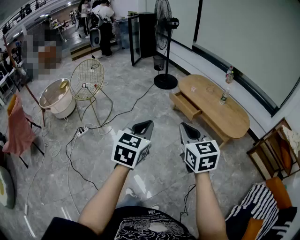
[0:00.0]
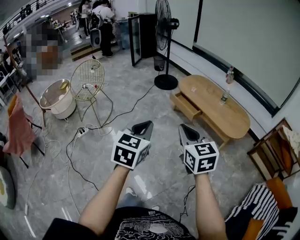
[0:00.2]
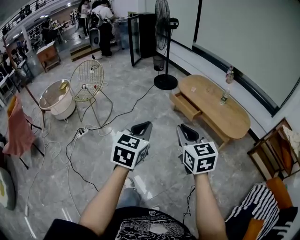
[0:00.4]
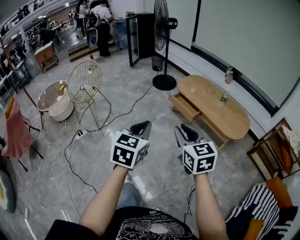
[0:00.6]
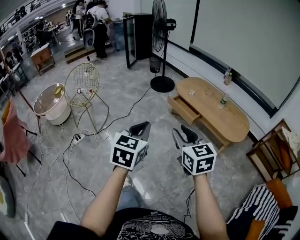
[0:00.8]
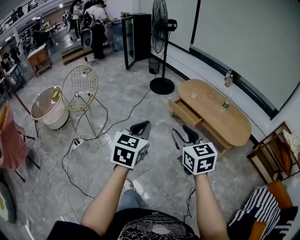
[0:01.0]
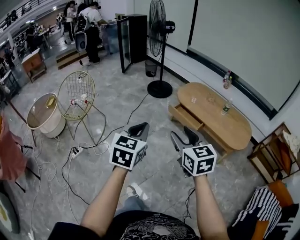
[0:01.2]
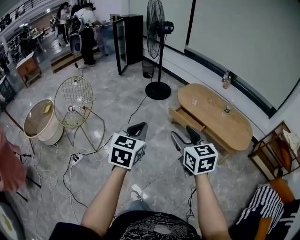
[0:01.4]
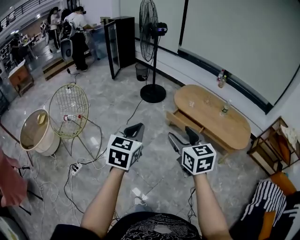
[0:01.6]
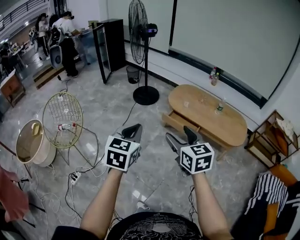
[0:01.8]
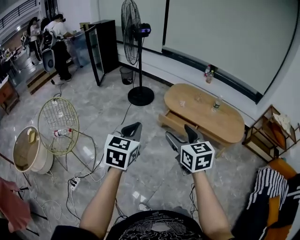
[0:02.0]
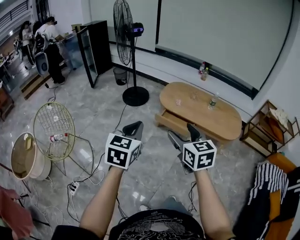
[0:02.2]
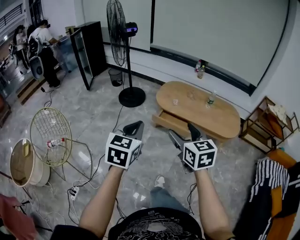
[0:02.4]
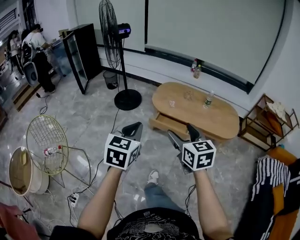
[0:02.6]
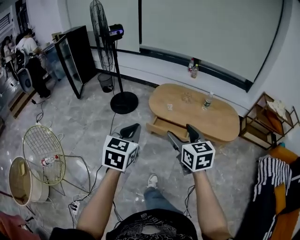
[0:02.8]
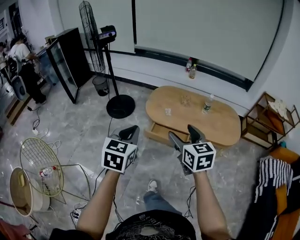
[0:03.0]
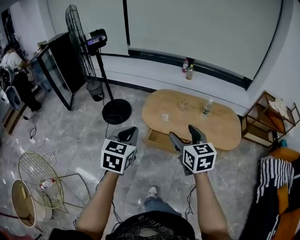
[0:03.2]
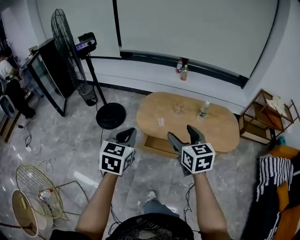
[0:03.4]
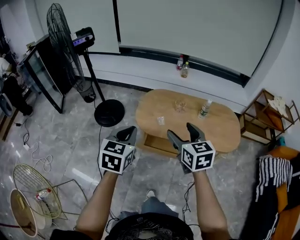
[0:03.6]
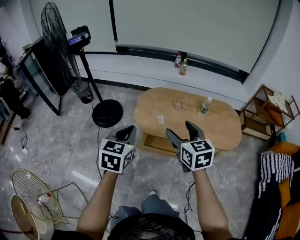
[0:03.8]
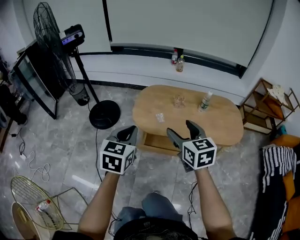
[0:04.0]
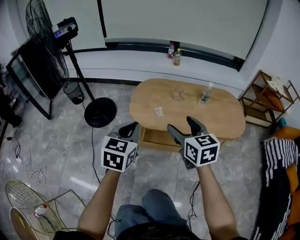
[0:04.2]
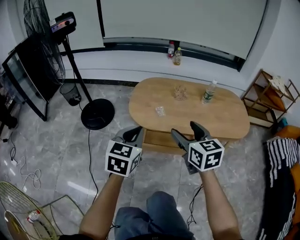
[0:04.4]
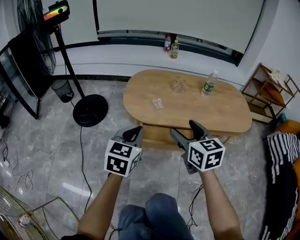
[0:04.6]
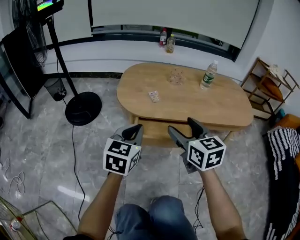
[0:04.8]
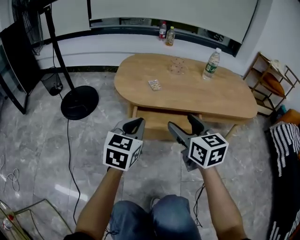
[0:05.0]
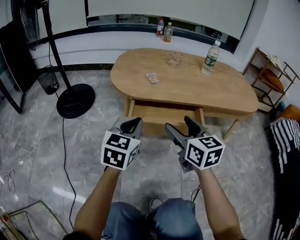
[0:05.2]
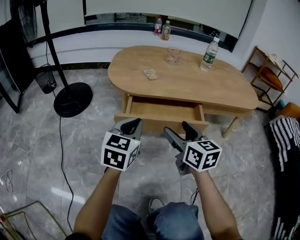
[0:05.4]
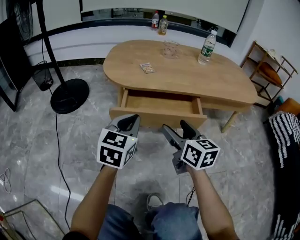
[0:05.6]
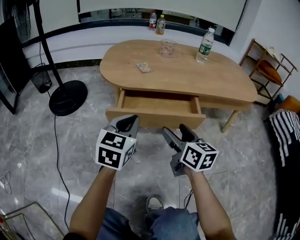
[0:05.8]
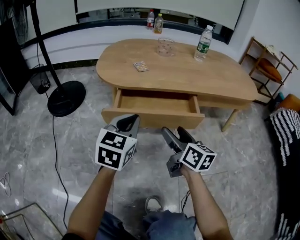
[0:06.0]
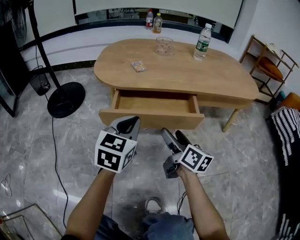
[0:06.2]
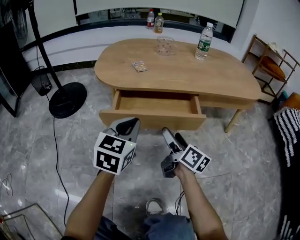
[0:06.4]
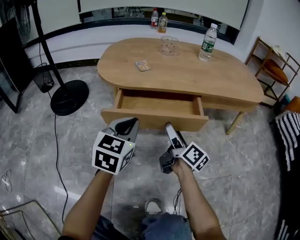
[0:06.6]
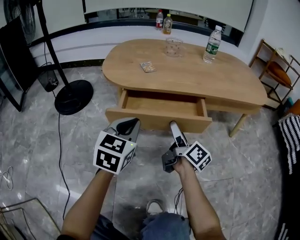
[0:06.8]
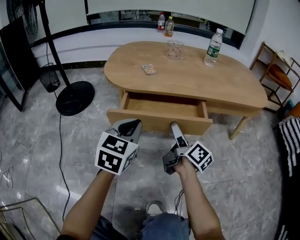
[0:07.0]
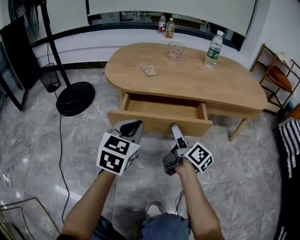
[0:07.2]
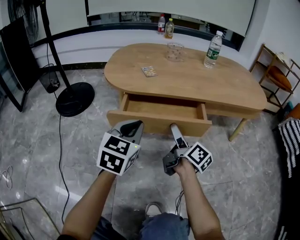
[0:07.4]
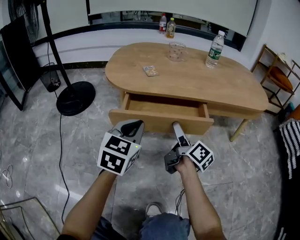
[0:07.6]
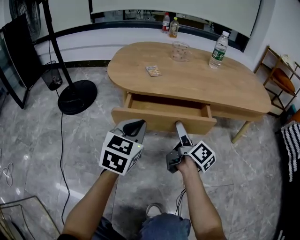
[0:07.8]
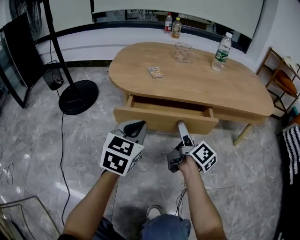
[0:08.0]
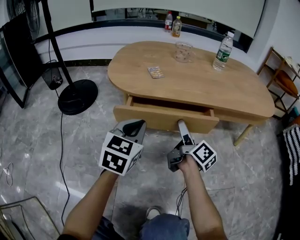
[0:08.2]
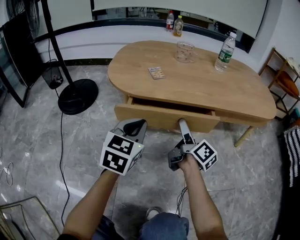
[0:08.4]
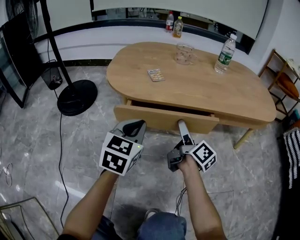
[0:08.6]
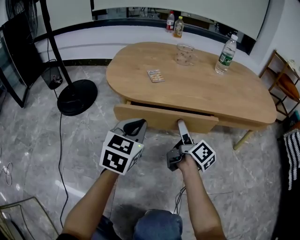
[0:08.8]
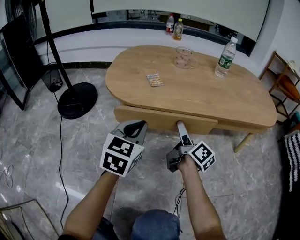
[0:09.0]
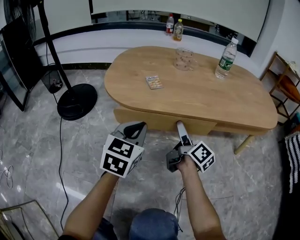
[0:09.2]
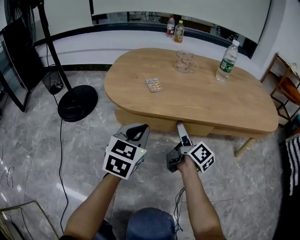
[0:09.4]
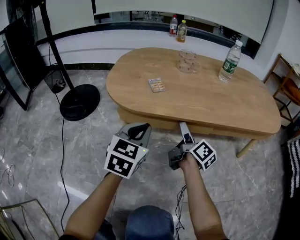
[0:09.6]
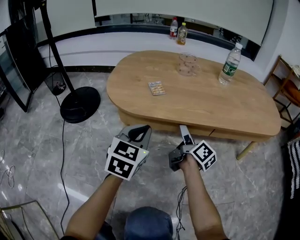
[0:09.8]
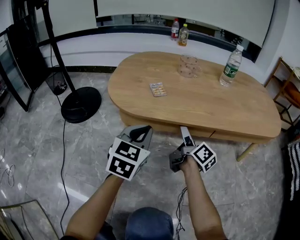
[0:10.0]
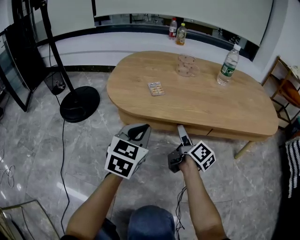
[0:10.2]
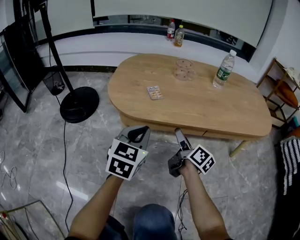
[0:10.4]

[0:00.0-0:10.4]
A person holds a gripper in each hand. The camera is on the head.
0:00.0 to 0:01.4: The grippers both shift forward and to the left by approximately 25 cm. The right gripper opens its fingers.
0:01.4 to 0:03.0: Both grippers travel together forward, some 30 cm. The right gripper swivels approximately 30 degrees, while the left gripper turns by approximately 20 degrees.
0:03.0 to 0:04.4: Both grippers travel together downward and forward, about 30 cm.
0:04.4 to 0:06.0: The two grippers go some 35 cm downward. The right gripper swivels roughly 30 degrees.
0:06.0 to 0:07.4: The right gripper ends up some 5 cm from where it was, and rotates roughly 30 degrees.
0:07.4 to 0:09.0: The two grippers go roughly 10 cm forward.
0:09.0 to 0:10.4: There are only small adjustments of the grippers.

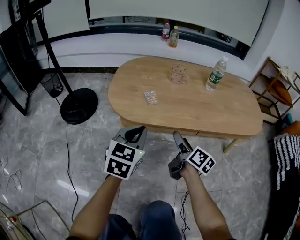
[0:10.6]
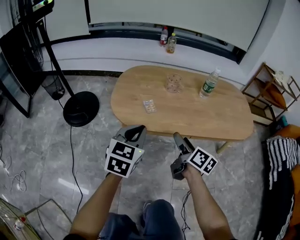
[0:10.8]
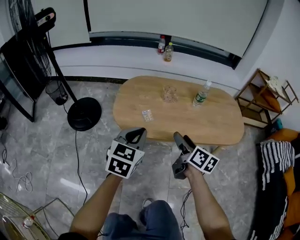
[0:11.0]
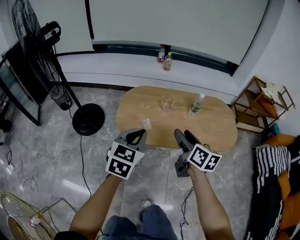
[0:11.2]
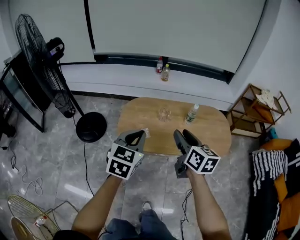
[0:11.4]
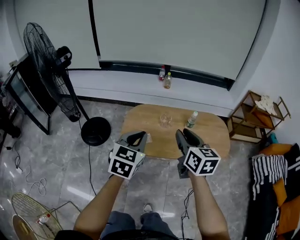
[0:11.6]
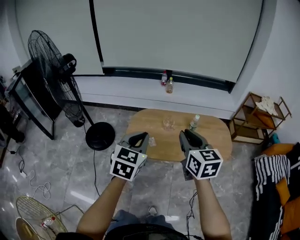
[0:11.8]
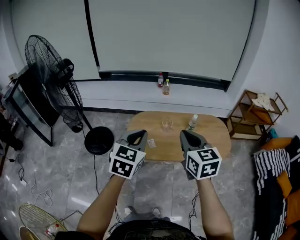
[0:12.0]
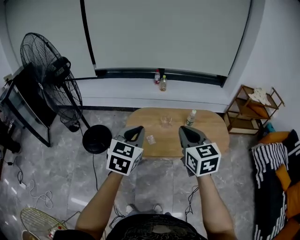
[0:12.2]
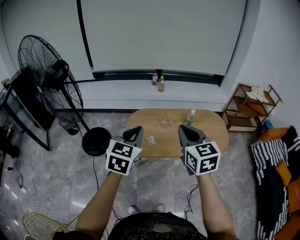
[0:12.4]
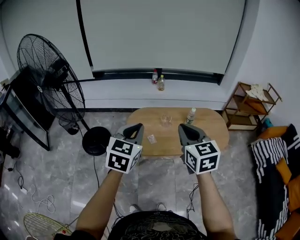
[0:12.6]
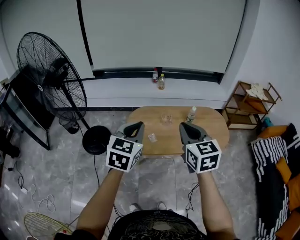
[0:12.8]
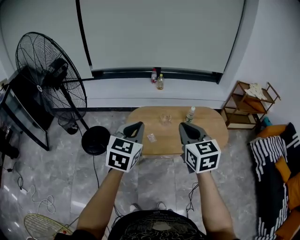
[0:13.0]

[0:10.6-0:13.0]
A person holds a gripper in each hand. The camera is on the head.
0:10.6 to 0:11.8: The grippers both shift upward by approximately 50 cm. The right gripper rotates around the line of its fingers by about 50 degrees, counterclockwise from behind, and closes.
0:11.8 to 0:13.0: Both grippers move to the left, approximately 5 cm.

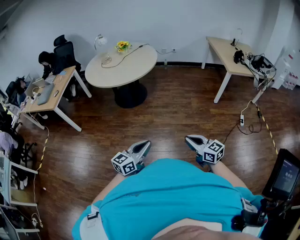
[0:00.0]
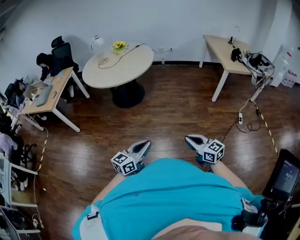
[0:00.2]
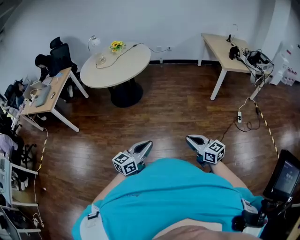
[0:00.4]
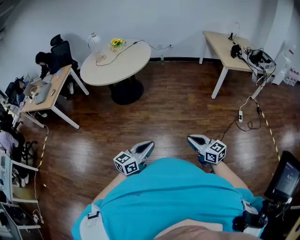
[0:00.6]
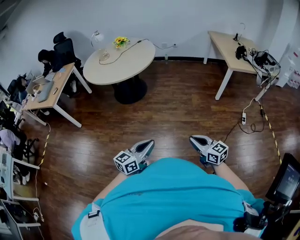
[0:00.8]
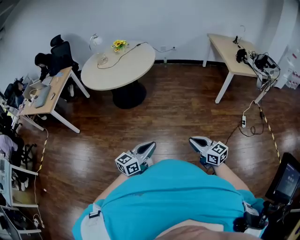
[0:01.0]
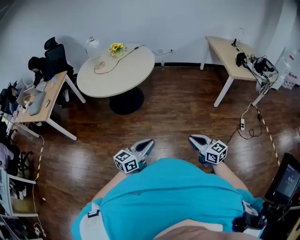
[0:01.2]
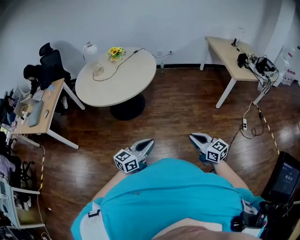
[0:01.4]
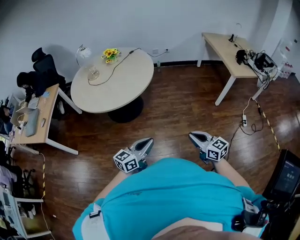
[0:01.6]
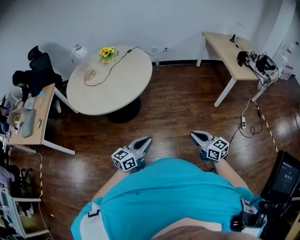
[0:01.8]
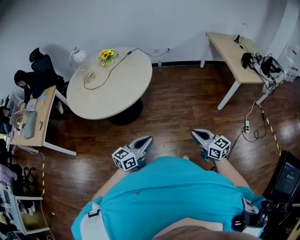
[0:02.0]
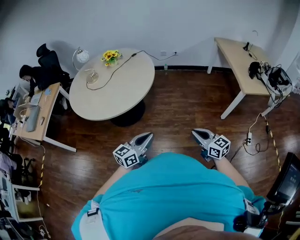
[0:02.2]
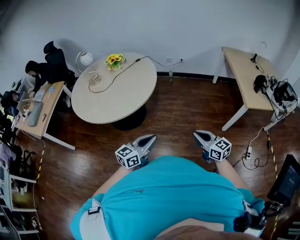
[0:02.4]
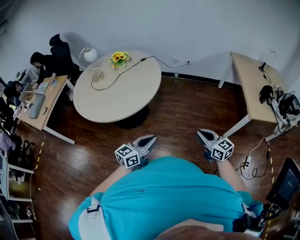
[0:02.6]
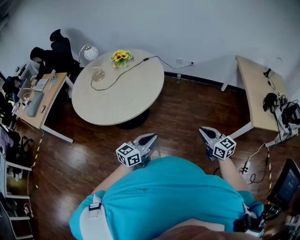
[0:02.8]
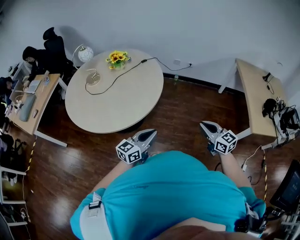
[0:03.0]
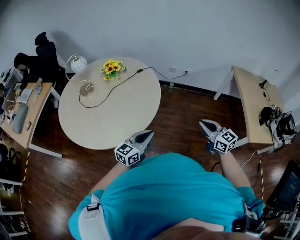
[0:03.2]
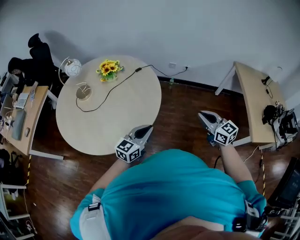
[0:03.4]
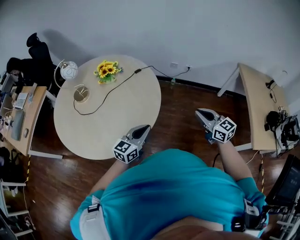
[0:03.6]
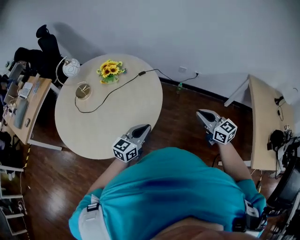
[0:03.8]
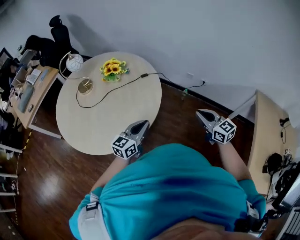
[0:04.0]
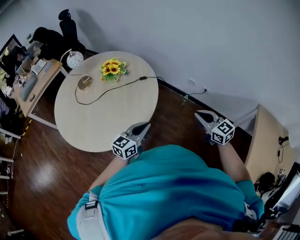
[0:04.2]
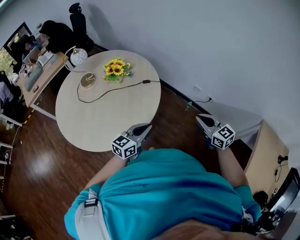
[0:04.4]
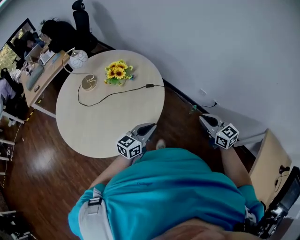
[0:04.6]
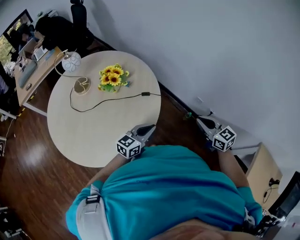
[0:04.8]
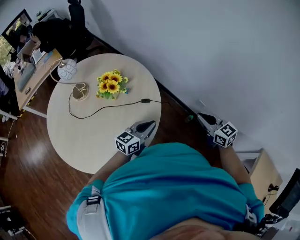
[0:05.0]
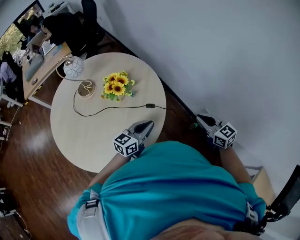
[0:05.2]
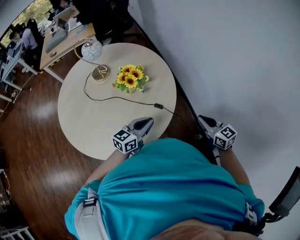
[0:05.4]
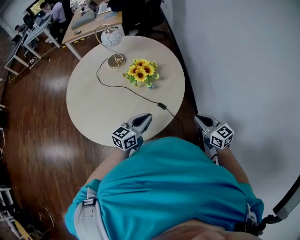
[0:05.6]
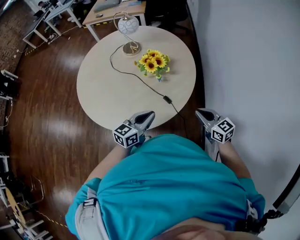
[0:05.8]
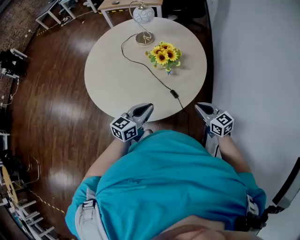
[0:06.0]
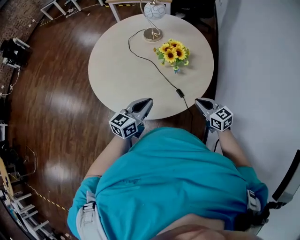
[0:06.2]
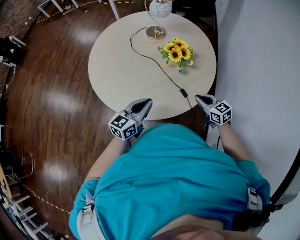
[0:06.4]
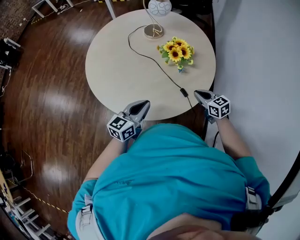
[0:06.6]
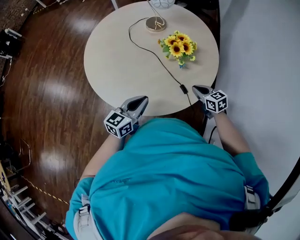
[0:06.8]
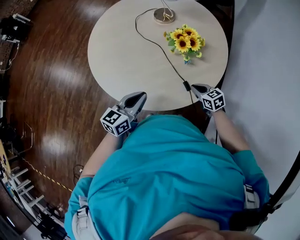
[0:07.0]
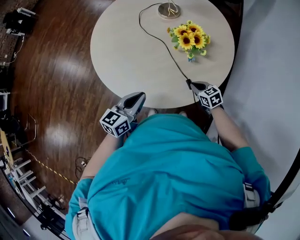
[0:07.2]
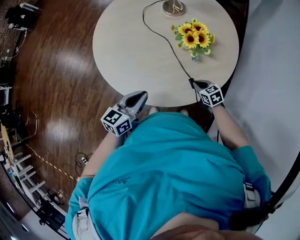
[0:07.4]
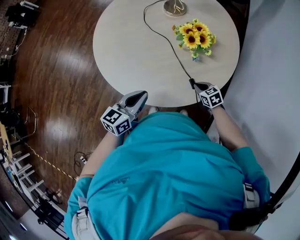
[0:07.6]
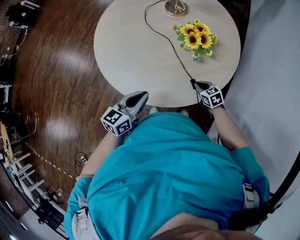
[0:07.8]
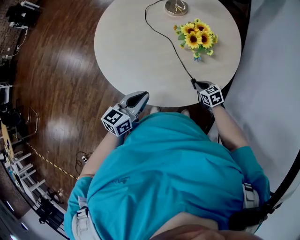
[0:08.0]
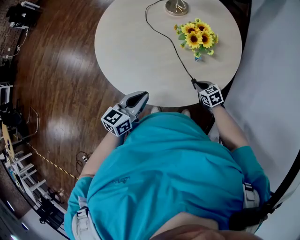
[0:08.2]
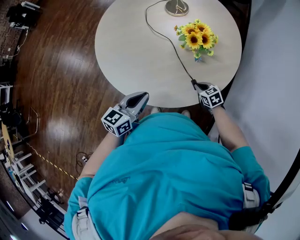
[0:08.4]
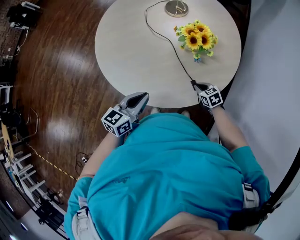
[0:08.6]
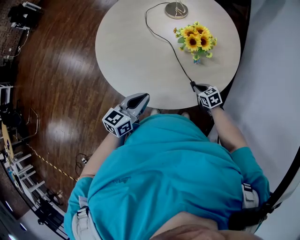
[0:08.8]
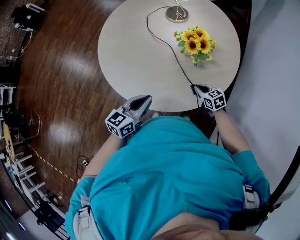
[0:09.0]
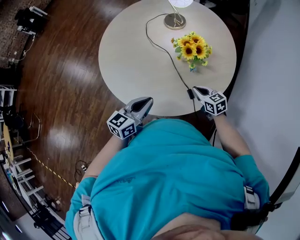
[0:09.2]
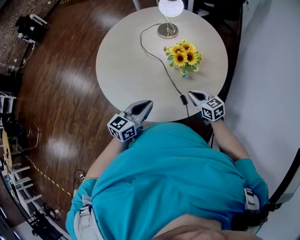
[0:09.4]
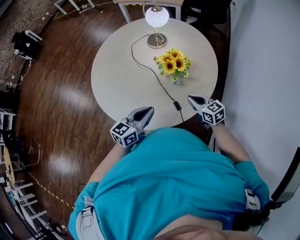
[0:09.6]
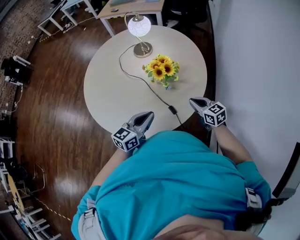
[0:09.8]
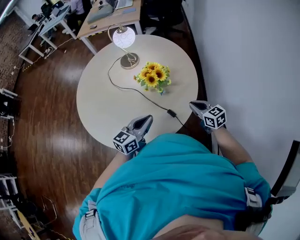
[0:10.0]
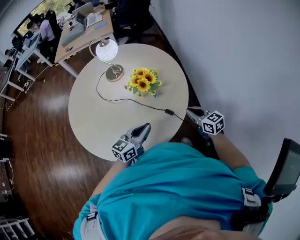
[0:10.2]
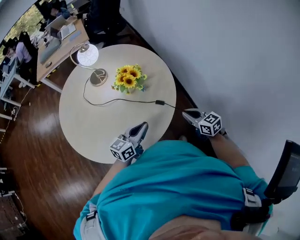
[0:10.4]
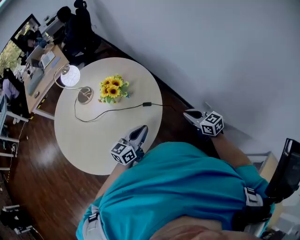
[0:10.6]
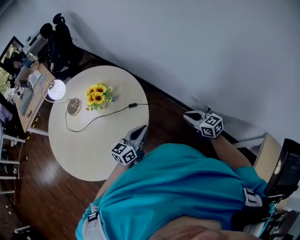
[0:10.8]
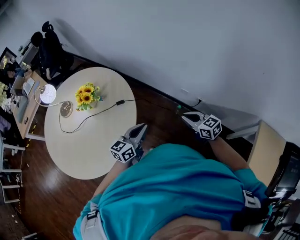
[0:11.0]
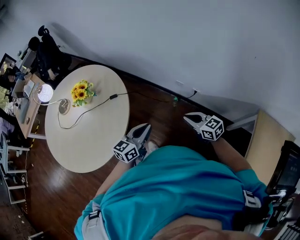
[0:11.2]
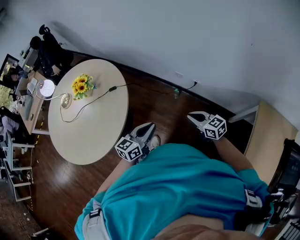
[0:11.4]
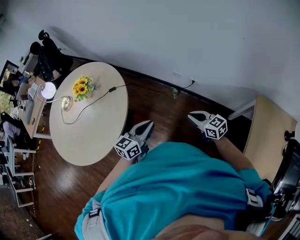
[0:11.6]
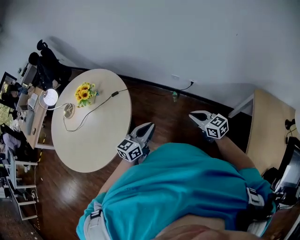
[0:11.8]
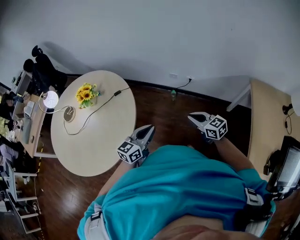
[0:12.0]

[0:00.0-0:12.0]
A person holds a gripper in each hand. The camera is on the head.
0:00.0 to 0:01.6: Both grippers move forward, about 30 cm.
0:01.6 to 0:03.0: The two grippers travel together, forward, some 50 cm.
0:03.0 to 0:04.4: Both grippers are carried approximately 50 cm. The right gripper swivels about 30 degrees. The left gripper swivels about 30 degrees.
0:04.4 to 0:06.0: The left gripper moves roughly 25 cm, and swivels roughly 60 degrees. The right gripper changes place by approximately 40 cm, and rotates some 60 degrees.
0:06.0 to 0:07.6: The left gripper heads downward, to the left and forward, covering roughly 15 cm, while the right gripper goes about 35 cm downward and forward, and tilts its fingers some 30 degrees downward.
0:07.6 to 0:09.0: The right gripper goes some 5 cm upward.
0:09.0 to 0:10.4: The left gripper travels upward by some 5 cm, and turns by some 50 degrees. The right gripper shifts about 20 cm upward, and turns by about 50 degrees.
0:10.4 to 0:12.0: The left gripper ends up roughly 35 cm from where it was, and swivels approximately 40 degrees. Meanwhile the right gripper moves about 50 cm, and turns by roughly 40 degrees.
